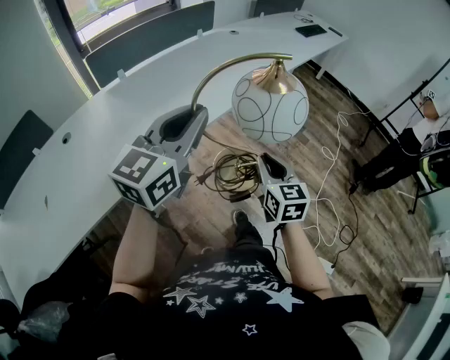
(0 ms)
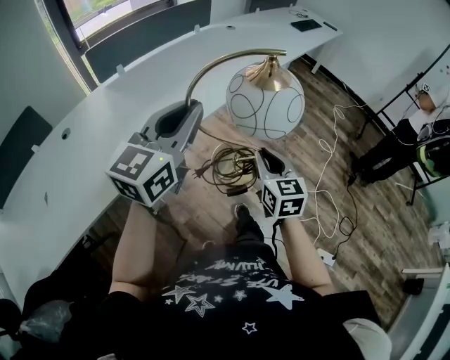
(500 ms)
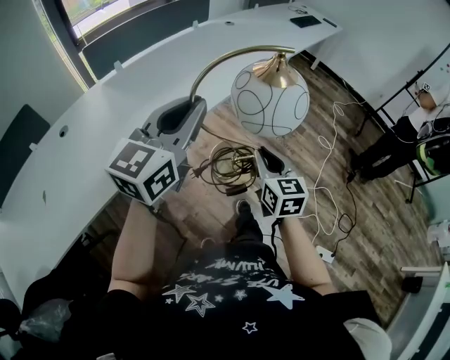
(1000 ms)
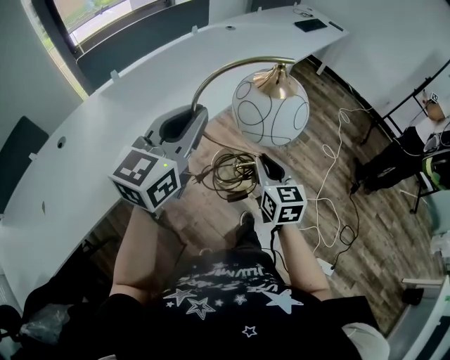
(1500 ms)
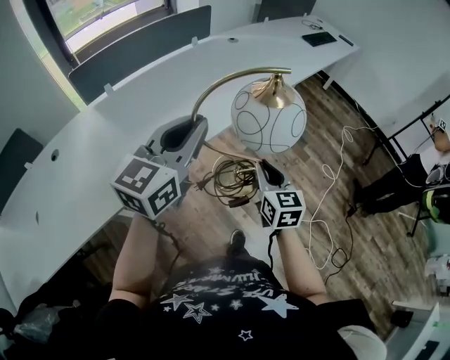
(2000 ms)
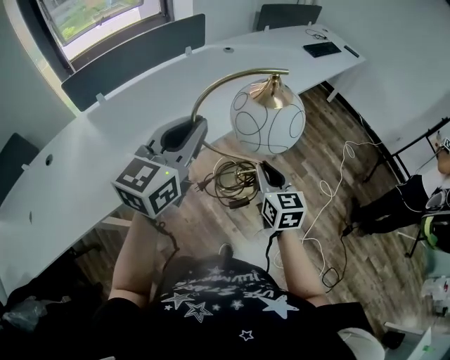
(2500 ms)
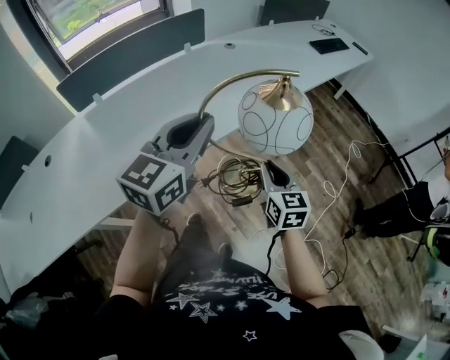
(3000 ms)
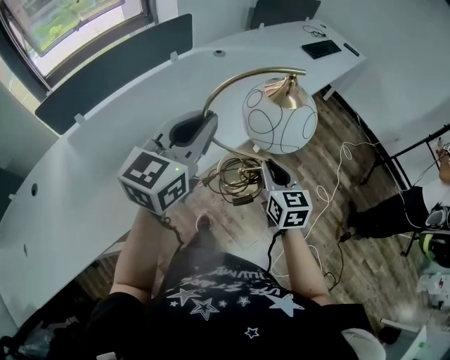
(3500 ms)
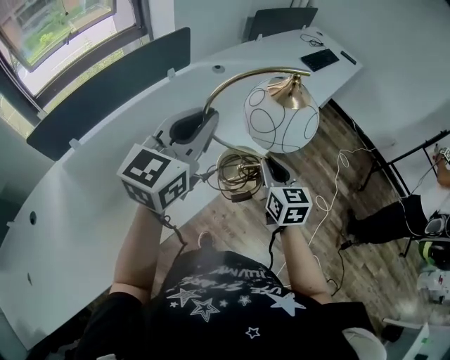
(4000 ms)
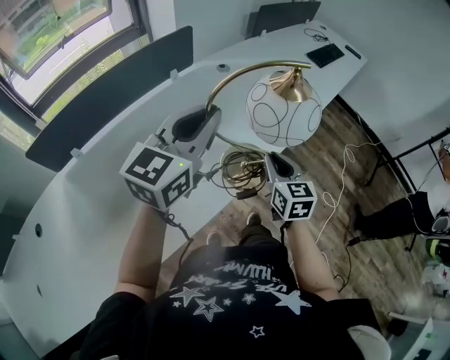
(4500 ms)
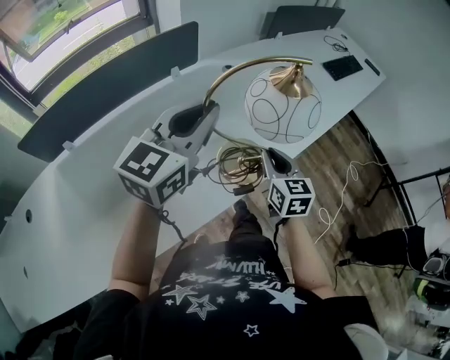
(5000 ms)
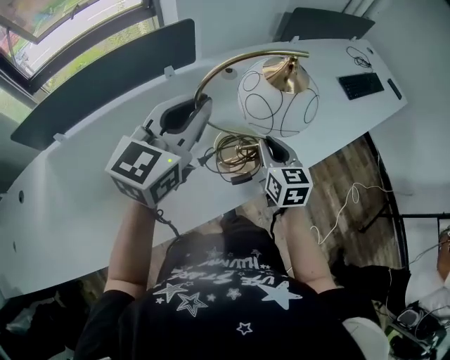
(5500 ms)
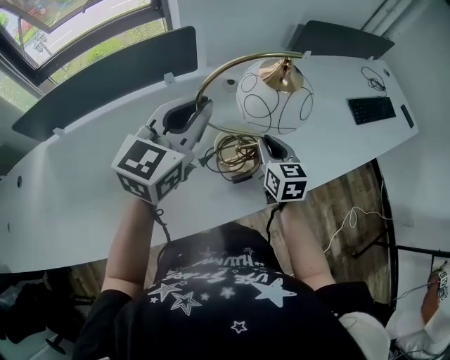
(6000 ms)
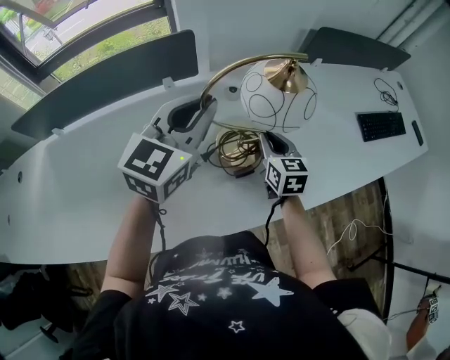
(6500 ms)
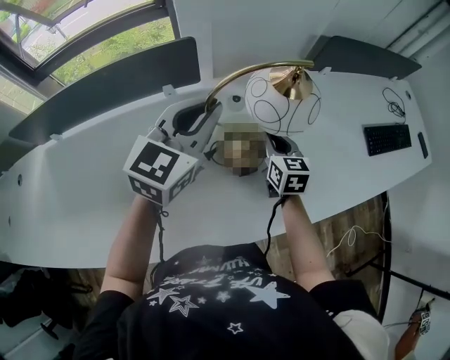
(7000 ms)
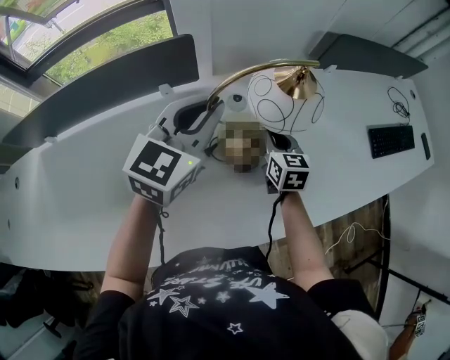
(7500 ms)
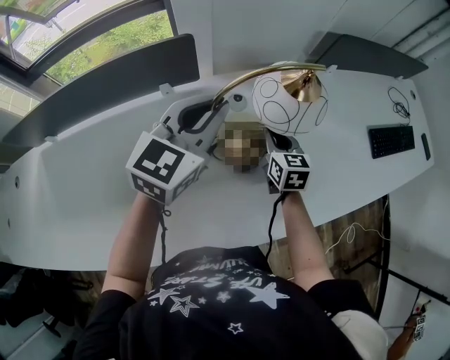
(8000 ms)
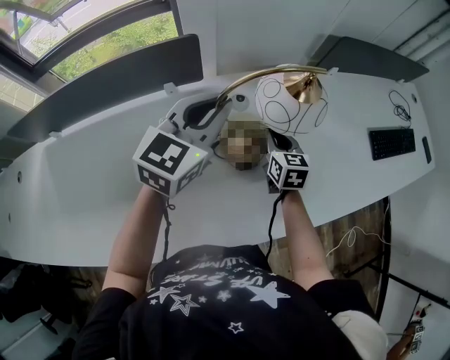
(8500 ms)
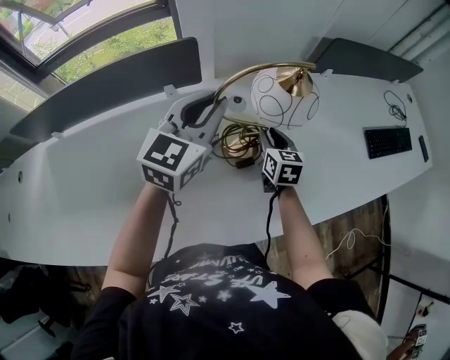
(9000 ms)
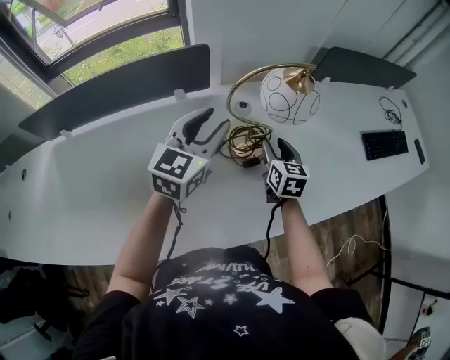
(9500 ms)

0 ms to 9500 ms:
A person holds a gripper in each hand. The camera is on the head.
0 ms to 2000 ms: The two grippers go some 15 cm forward.
2000 ms to 4000 ms: The grippers both shift forward by roughly 30 cm.
4000 ms to 5500 ms: Both grippers move forward, some 25 cm.
5500 ms to 7500 ms: Both grippers move forward, approximately 20 cm.
7500 ms to 9500 ms: The right gripper shifts by some 5 cm, and opens. Meanwhile the left gripper ends up some 5 cm from where it was, and opens its fingers.

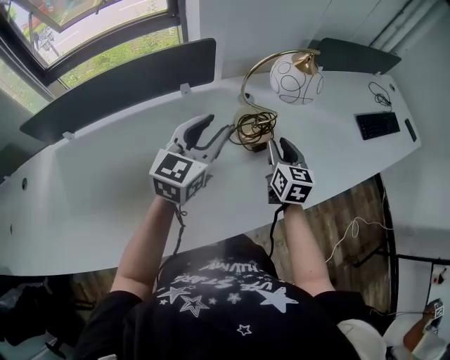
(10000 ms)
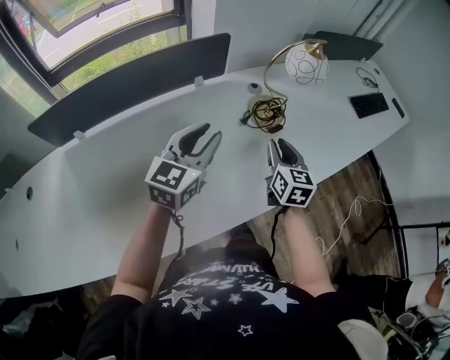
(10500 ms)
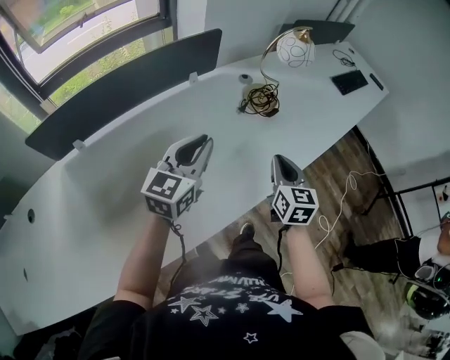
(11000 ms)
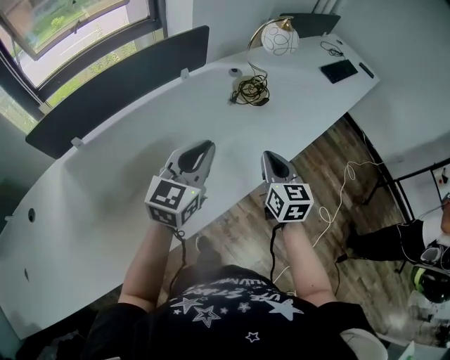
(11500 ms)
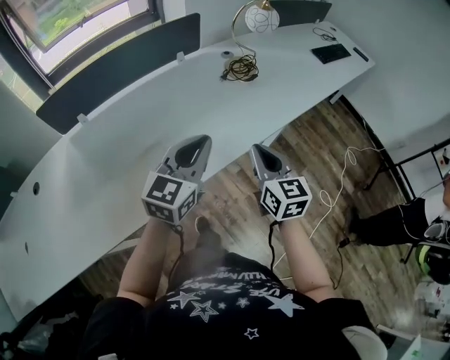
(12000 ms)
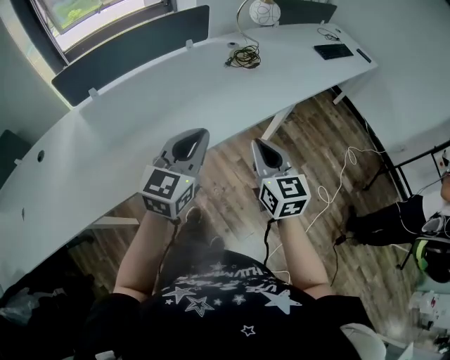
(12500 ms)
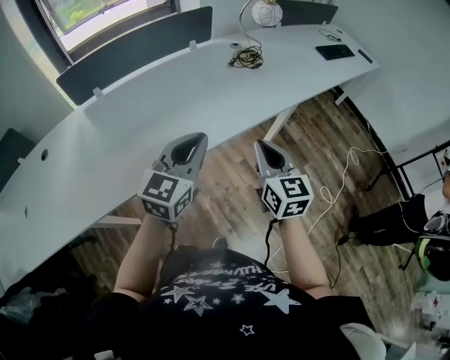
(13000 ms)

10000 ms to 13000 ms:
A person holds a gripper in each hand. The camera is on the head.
10000 ms to 11500 ms: The two grippers go about 25 cm backward. The right gripper closes its fingers; the left gripper closes up.
11500 ms to 13000 ms: Both grippers move backward, some 25 cm.

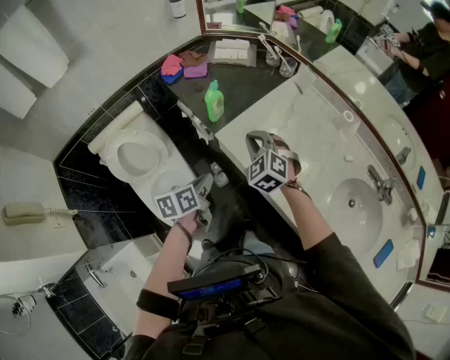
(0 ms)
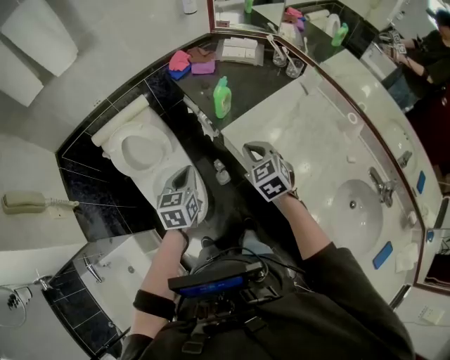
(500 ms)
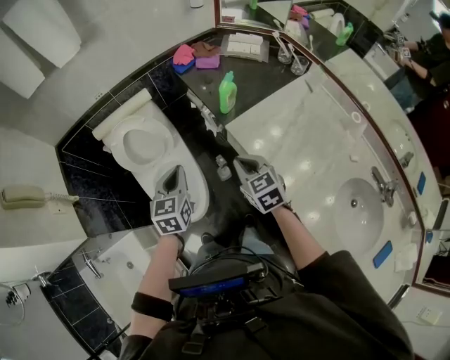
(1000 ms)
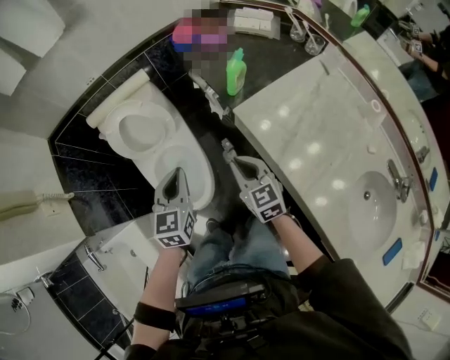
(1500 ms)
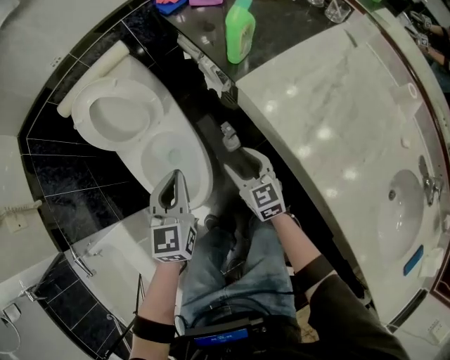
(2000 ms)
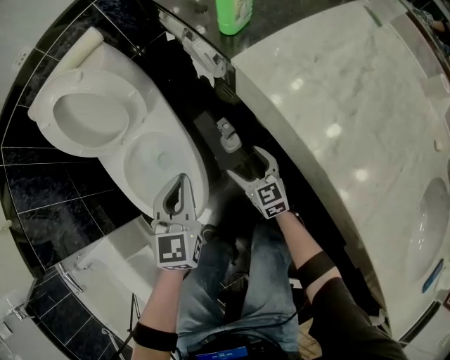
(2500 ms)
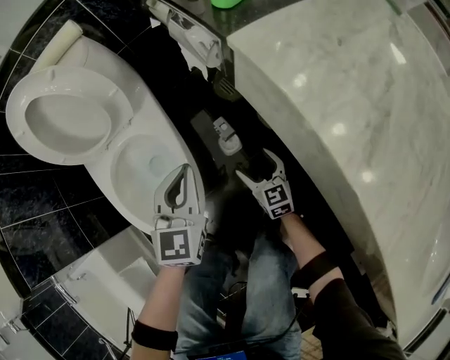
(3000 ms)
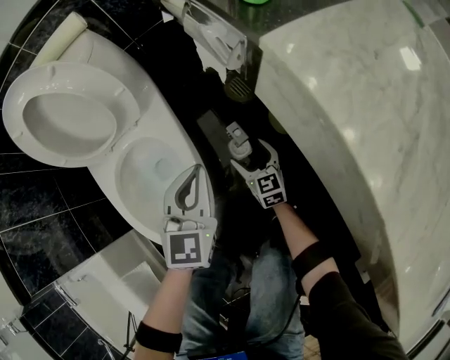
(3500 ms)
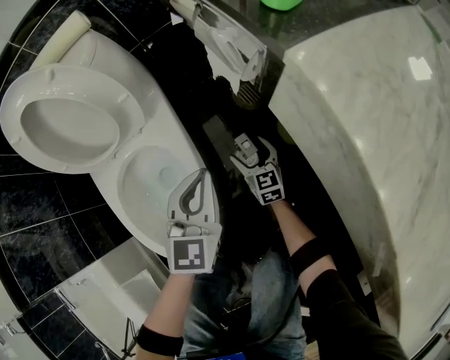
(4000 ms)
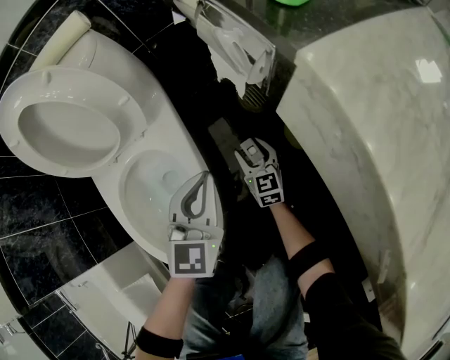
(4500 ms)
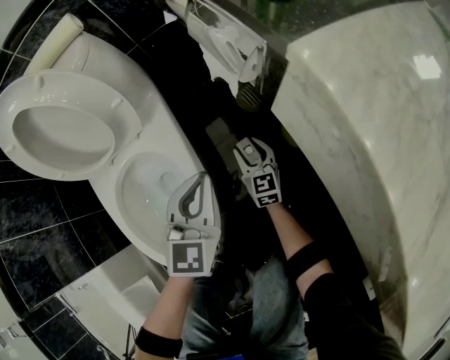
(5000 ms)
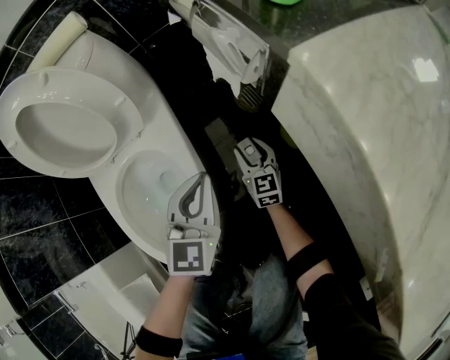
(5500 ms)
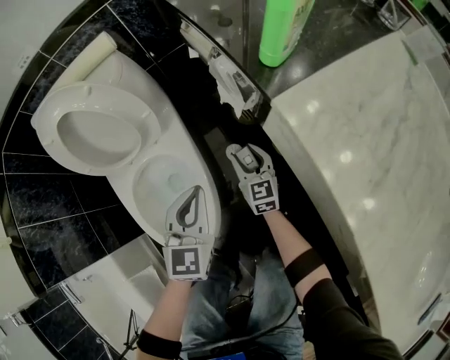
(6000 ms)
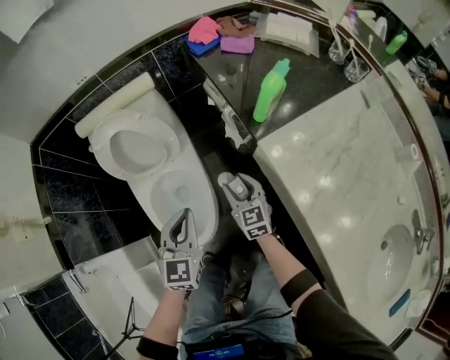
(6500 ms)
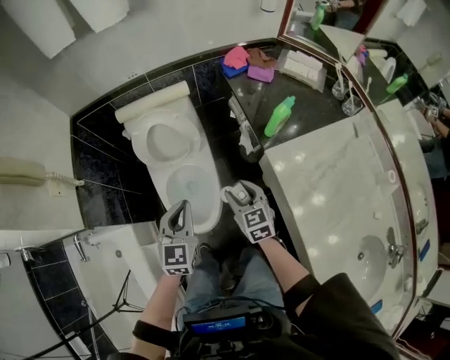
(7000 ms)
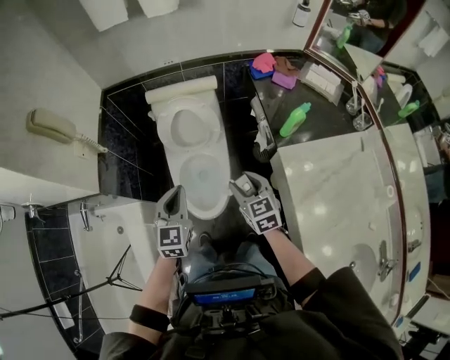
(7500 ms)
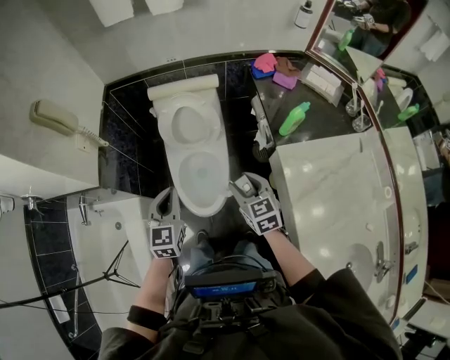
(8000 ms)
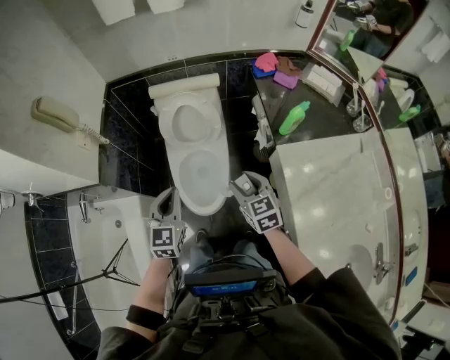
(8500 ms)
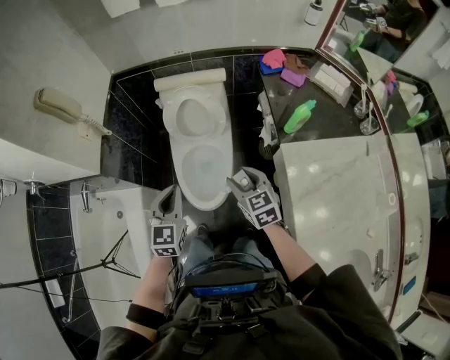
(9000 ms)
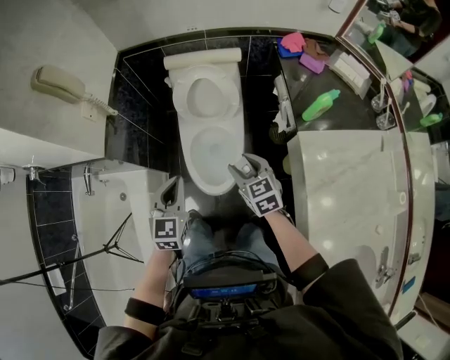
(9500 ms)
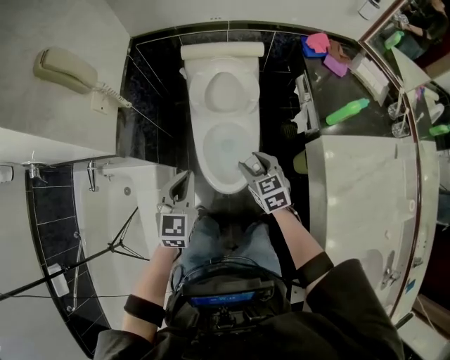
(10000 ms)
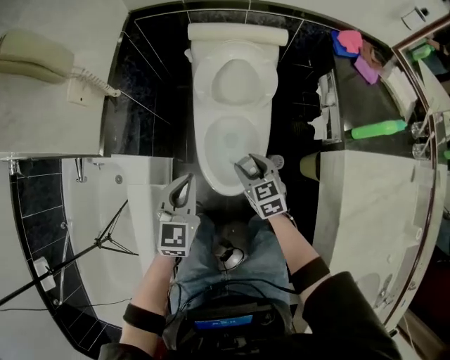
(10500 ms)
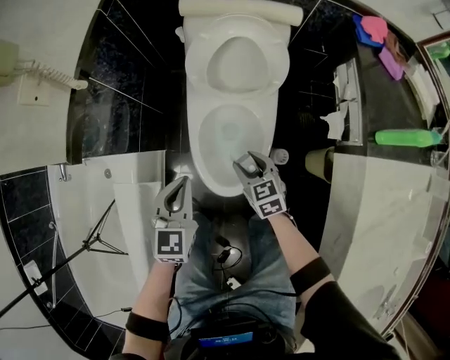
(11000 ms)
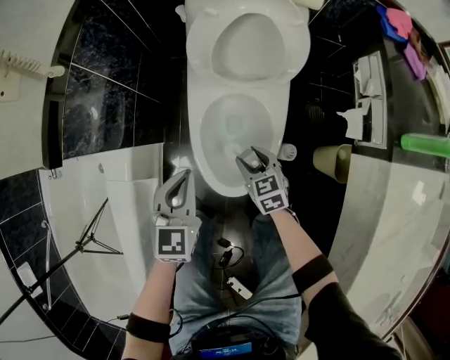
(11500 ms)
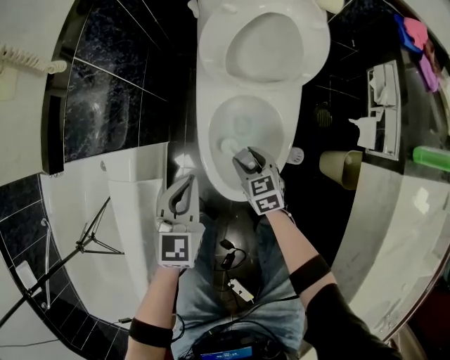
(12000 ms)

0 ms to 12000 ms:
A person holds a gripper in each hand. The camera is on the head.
0 ms to 2000 ms: The left gripper travels downward by approximately 15 cm, and changes its angle by approximately 50 degrees. The right gripper moves downward, some 30 cm, rotates roughly 40 degrees, and opens up.
2000 ms to 4000 ms: Both grippers travel together downward and forward, roughly 35 cm. The right gripper opens up.
4000 ms to 6000 ms: The right gripper is displaced upward by roughly 15 cm, and closes up; the left gripper moves upward, about 10 cm.
6000 ms to 8000 ms: The grippers both shift upward by about 40 cm. The right gripper rotates roughly 30 degrees; the left gripper swivels about 30 degrees.
8000 ms to 10000 ms: The left gripper shifts approximately 5 cm to the left; the right gripper travels to the left, downward and forward by some 15 cm.
10000 ms to 12000 ms: Both grippers travel together downward, roughly 30 cm.

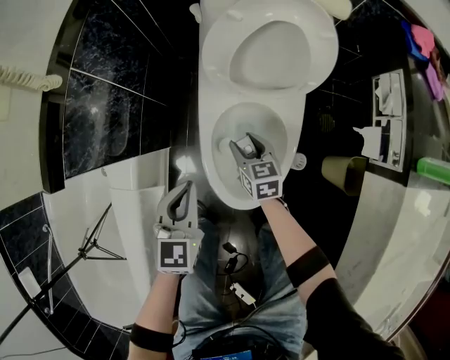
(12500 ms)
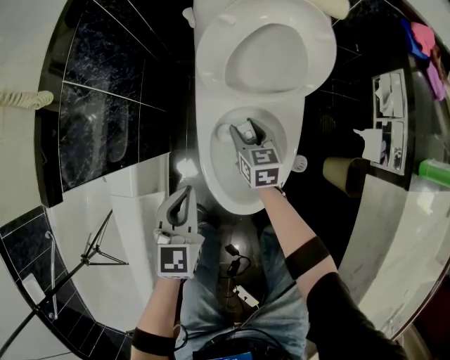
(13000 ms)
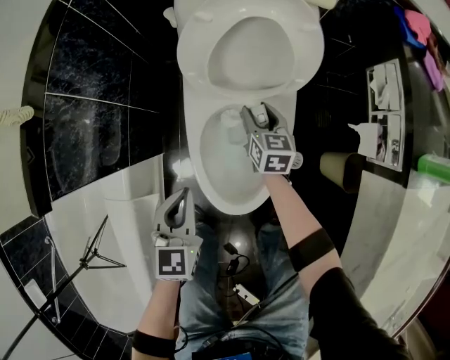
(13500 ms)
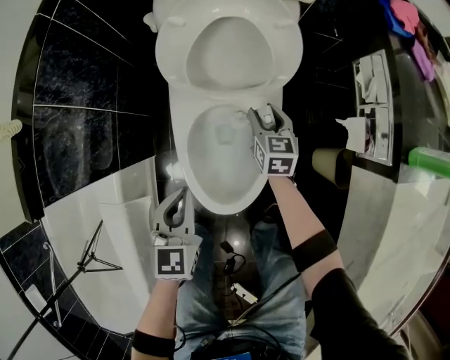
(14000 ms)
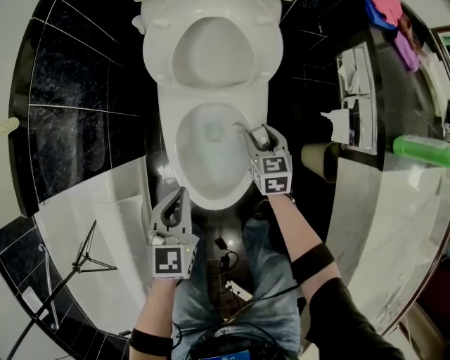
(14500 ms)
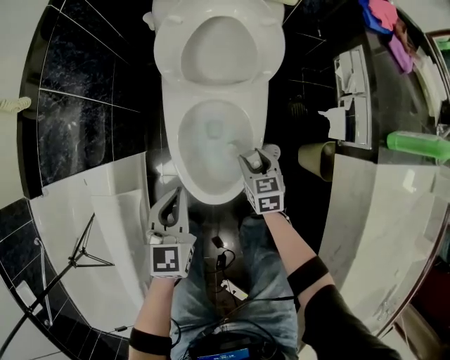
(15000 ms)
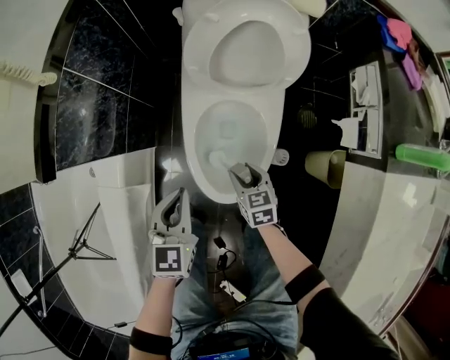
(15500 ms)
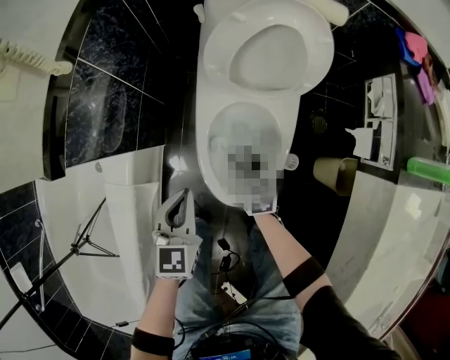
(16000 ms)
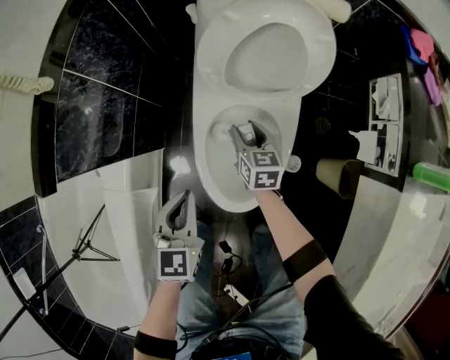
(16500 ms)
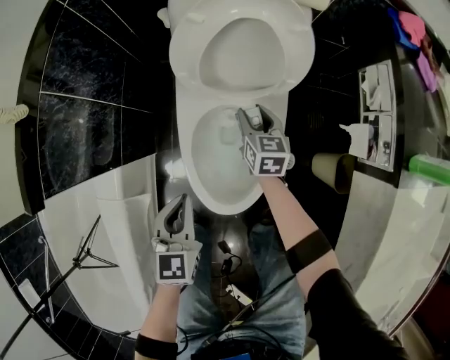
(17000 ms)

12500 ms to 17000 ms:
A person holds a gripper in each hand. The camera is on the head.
12500 ms to 14500 ms: The left gripper goes some 10 cm to the right. The right gripper heads to the right, covering some 20 cm.
14500 ms to 17000 ms: The right gripper heads forward and to the left, covering roughly 10 cm.
